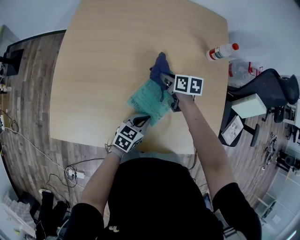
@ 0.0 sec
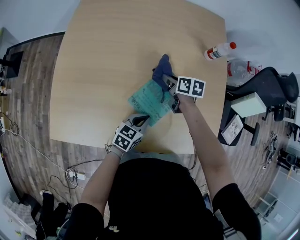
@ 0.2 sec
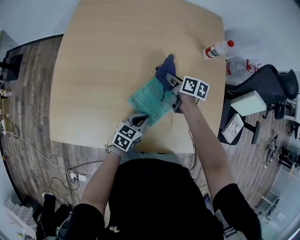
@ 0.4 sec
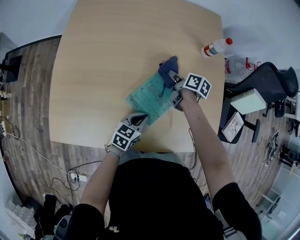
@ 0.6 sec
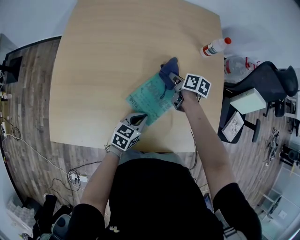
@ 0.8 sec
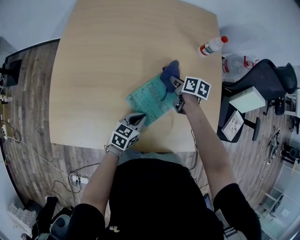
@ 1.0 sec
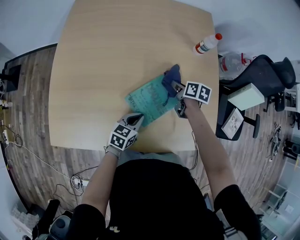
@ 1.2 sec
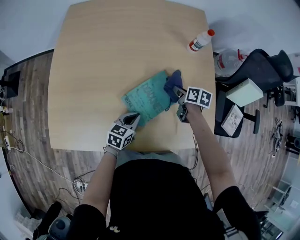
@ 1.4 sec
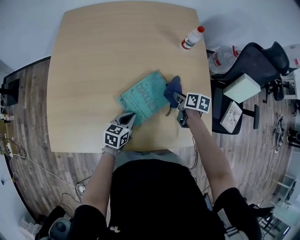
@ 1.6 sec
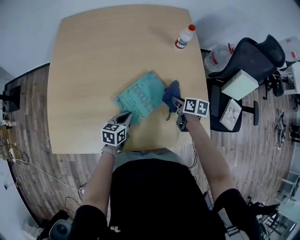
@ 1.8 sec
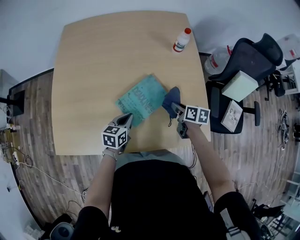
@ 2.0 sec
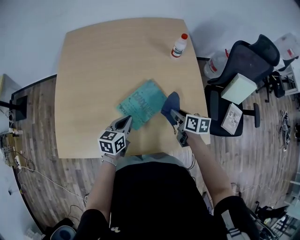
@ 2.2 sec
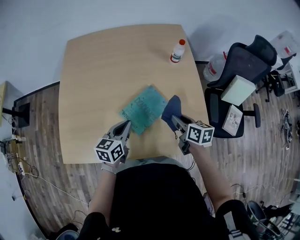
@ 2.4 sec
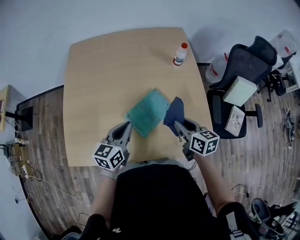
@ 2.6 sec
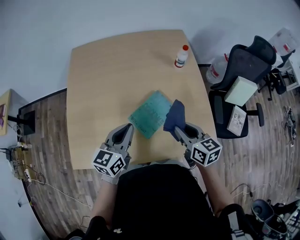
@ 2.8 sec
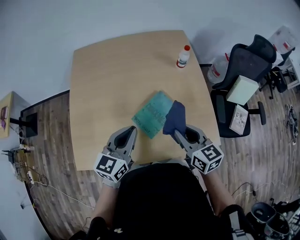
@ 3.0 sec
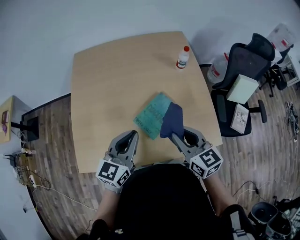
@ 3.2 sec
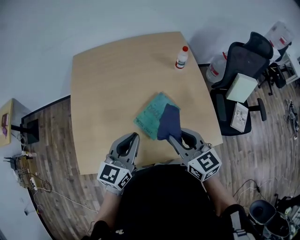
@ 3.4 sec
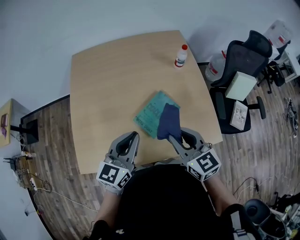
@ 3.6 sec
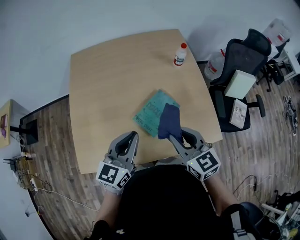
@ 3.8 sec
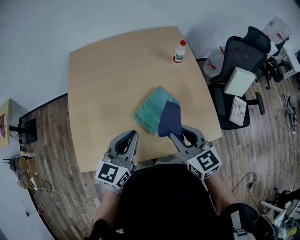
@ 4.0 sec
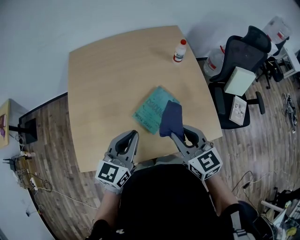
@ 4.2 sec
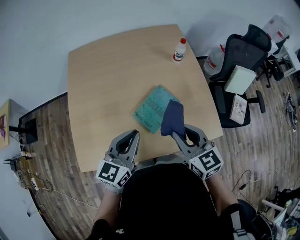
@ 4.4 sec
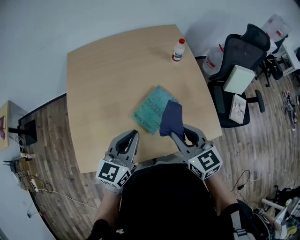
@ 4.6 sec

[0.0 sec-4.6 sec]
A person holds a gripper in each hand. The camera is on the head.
0.0 sec to 1.6 sec: The right gripper goes about 20 cm to the right, and changes its angle by approximately 20 degrees.
1.6 sec to 3.0 sec: The left gripper travels upward by approximately 30 cm, and changes its angle by some 30 degrees. The right gripper moves upward and backward, some 30 cm, and points its fingers about 30 degrees further upward.
3.0 sec to 4.6 sec: The right gripper changes place by roughly 5 cm.

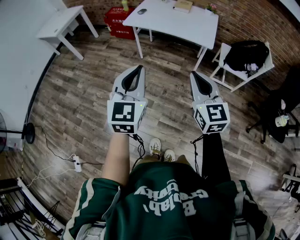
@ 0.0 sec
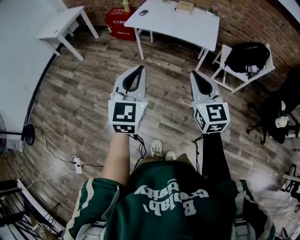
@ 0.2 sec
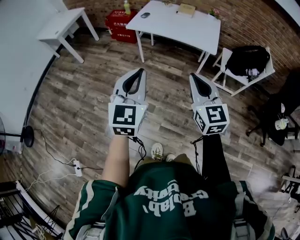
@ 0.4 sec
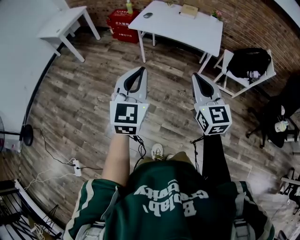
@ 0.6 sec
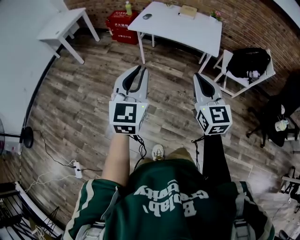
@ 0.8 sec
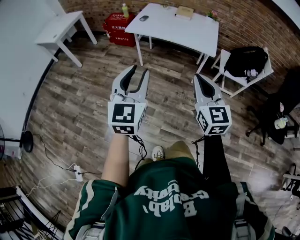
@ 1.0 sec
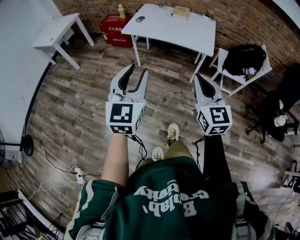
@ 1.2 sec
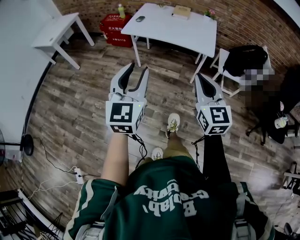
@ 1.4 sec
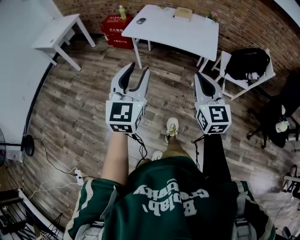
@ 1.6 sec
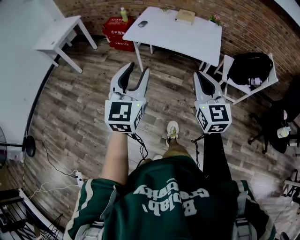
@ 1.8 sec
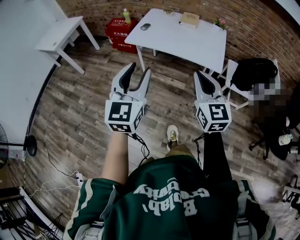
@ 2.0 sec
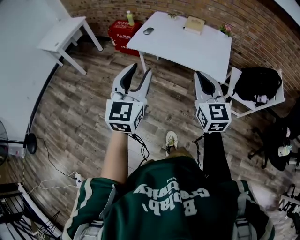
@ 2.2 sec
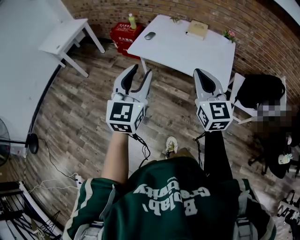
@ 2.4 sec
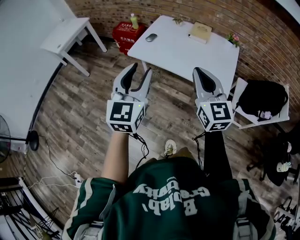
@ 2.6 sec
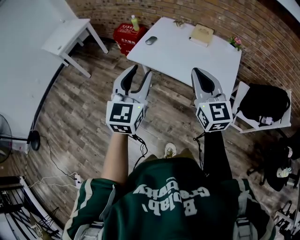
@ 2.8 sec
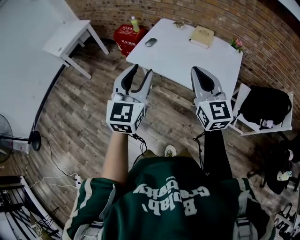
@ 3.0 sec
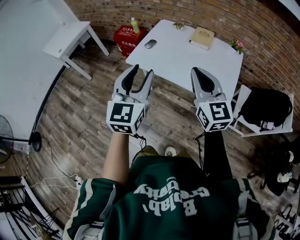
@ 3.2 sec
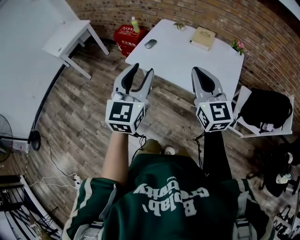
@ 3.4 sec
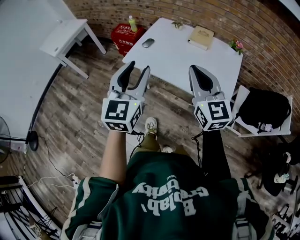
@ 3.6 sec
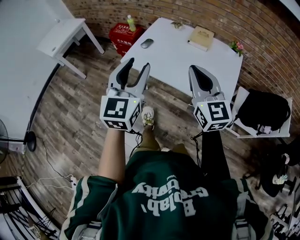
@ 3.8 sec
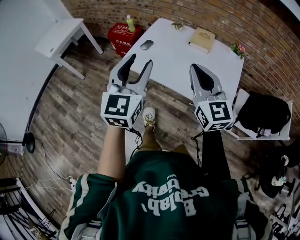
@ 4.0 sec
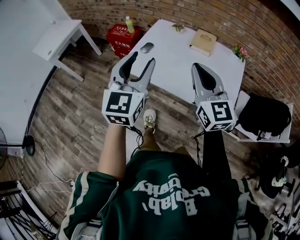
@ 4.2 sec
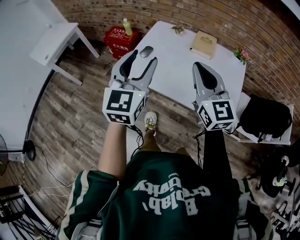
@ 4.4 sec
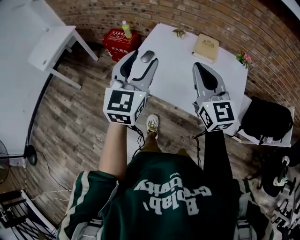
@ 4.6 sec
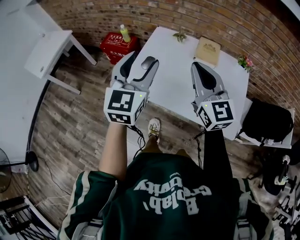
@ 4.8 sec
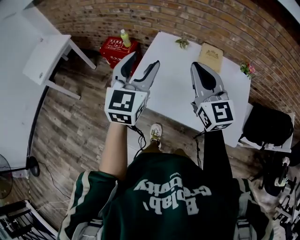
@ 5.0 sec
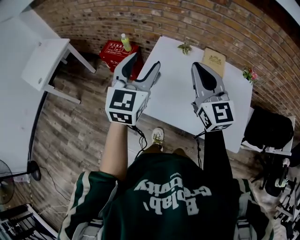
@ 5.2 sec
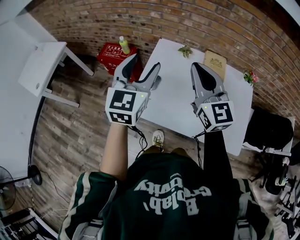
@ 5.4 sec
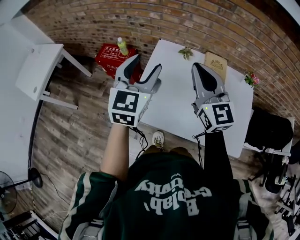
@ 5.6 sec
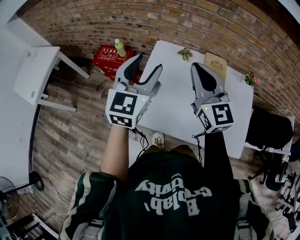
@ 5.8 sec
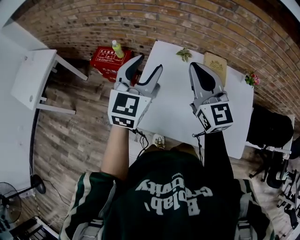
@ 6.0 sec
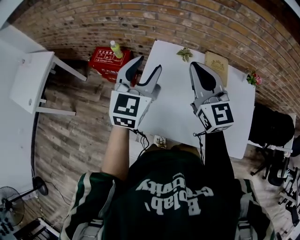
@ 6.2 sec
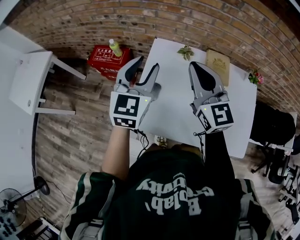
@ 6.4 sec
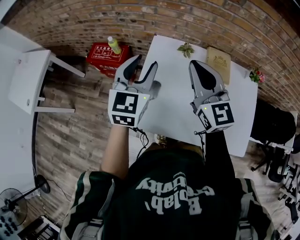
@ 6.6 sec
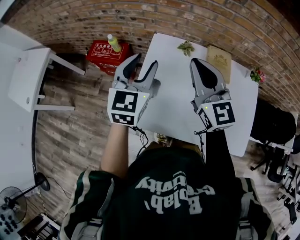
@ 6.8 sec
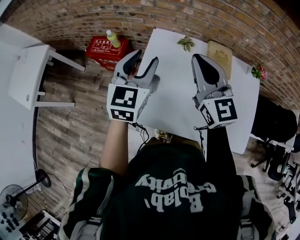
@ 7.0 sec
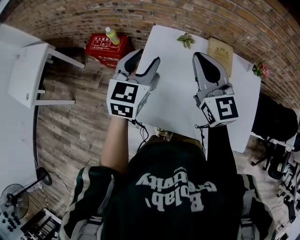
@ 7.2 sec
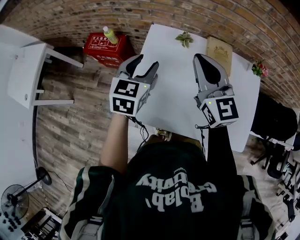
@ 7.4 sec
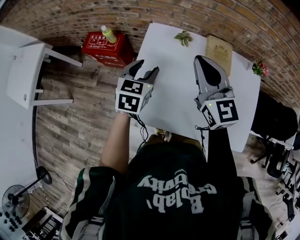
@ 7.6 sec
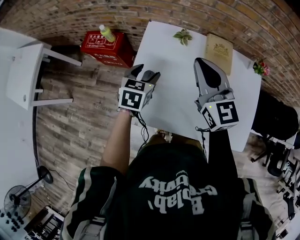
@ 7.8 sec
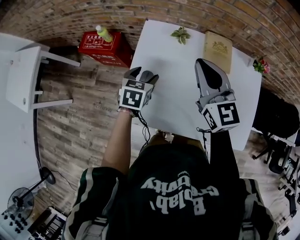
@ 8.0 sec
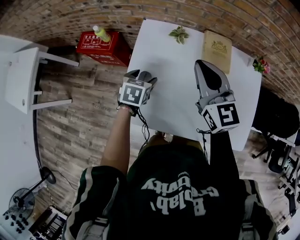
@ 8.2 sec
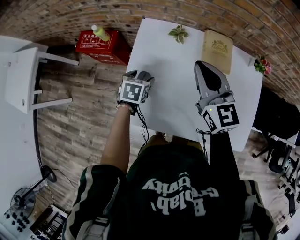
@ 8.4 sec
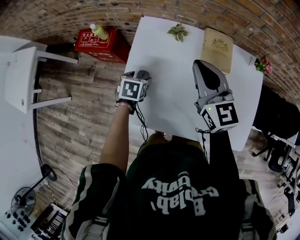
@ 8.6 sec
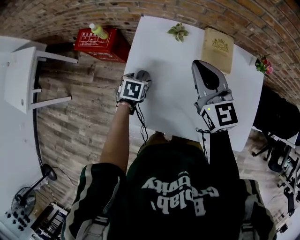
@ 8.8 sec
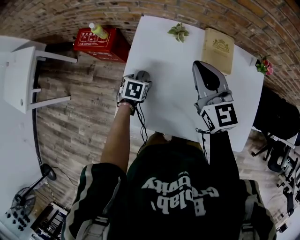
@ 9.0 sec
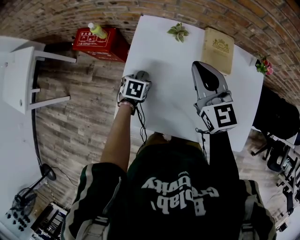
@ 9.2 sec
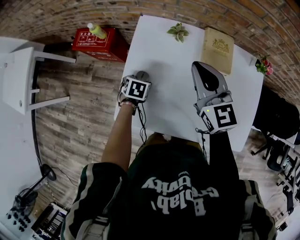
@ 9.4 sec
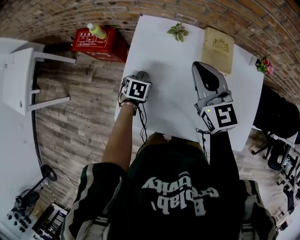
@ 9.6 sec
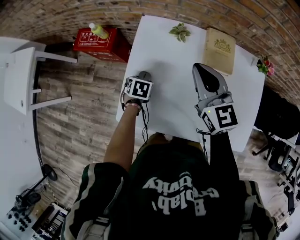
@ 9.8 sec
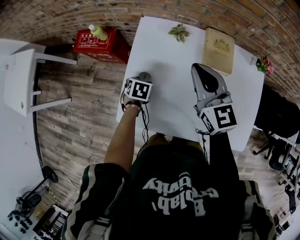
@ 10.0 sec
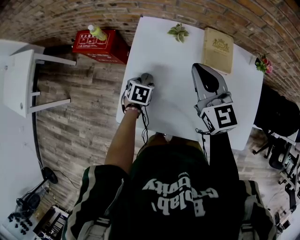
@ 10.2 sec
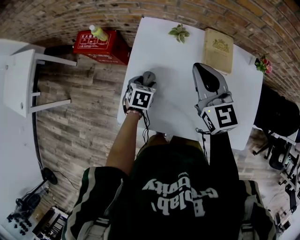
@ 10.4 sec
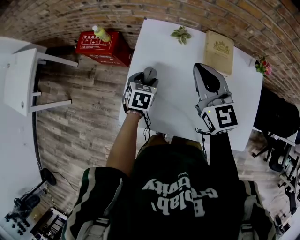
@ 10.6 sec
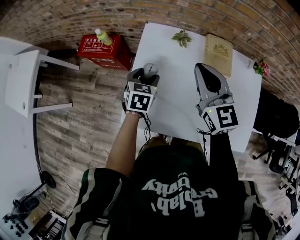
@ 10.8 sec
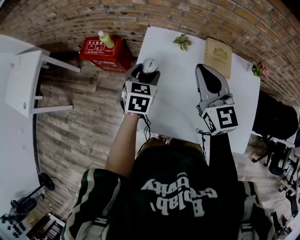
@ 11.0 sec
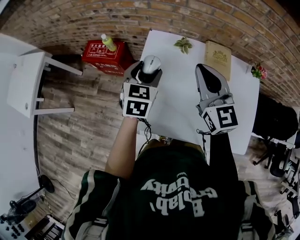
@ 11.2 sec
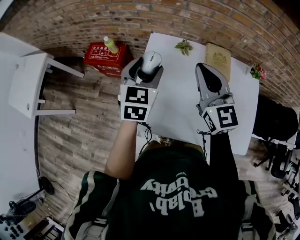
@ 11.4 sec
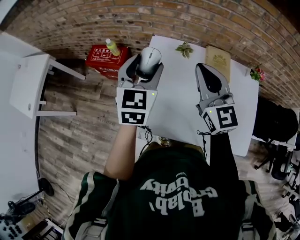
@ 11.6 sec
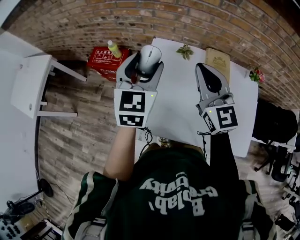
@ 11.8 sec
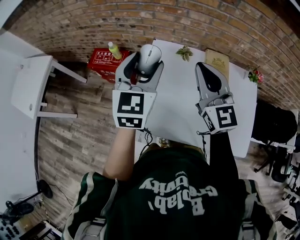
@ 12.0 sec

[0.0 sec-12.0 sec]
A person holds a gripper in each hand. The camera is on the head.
0.0 sec to 1.6 sec: Both grippers travel together forward, about 10 cm. The left gripper opens up.
1.6 sec to 3.0 sec: The grippers both shift forward by about 35 cm.
3.0 sec to 4.4 sec: The two grippers go some 15 cm forward.
4.4 sec to 6.0 sec: The left gripper goes about 30 cm forward; the right gripper is displaced forward and to the left by approximately 30 cm.
6.0 sec to 7.6 sec: The left gripper moves downward, about 20 cm, and turns by some 30 degrees, while the right gripper goes some 5 cm downward.
7.6 sec to 9.0 sec: The left gripper shifts roughly 20 cm downward, tips its fingers downward by some 30 degrees, and opens up, while the right gripper travels downward by approximately 5 cm.
9.0 sec to 10.4 sec: There are only small adjustments of the grippers.
10.4 sec to 12.0 sec: The left gripper shifts some 35 cm upward, and tips its fingers upward by approximately 50 degrees. Meanwhile the right gripper moves upward, approximately 10 cm.

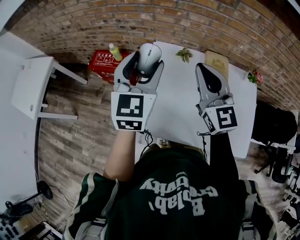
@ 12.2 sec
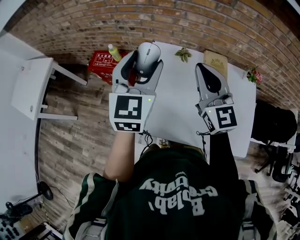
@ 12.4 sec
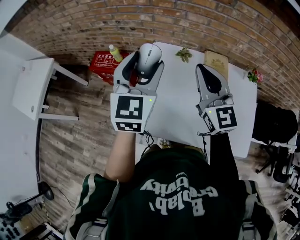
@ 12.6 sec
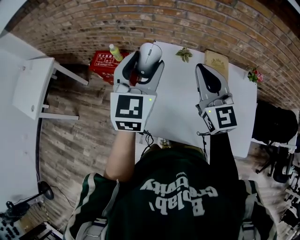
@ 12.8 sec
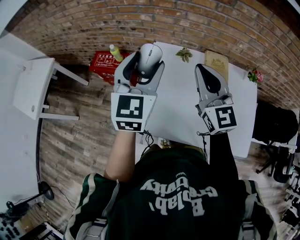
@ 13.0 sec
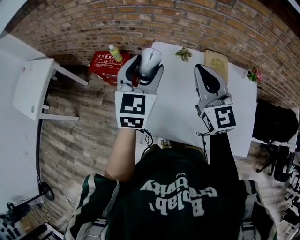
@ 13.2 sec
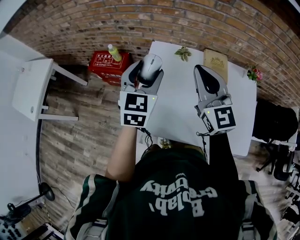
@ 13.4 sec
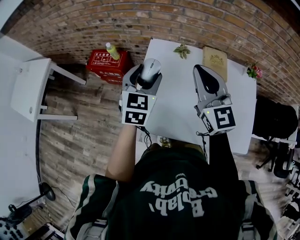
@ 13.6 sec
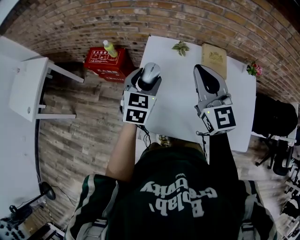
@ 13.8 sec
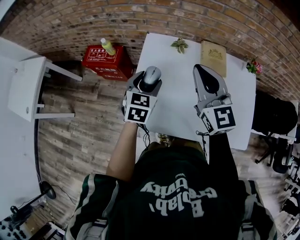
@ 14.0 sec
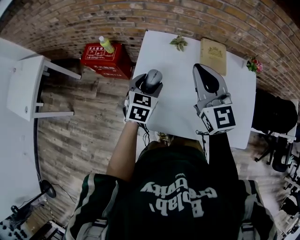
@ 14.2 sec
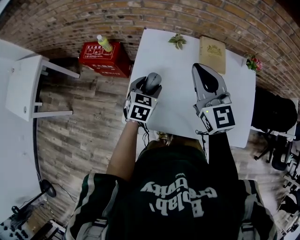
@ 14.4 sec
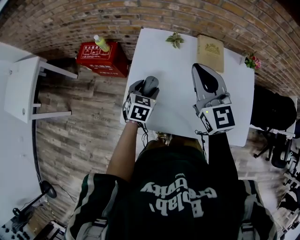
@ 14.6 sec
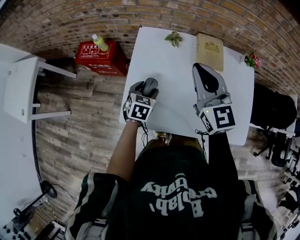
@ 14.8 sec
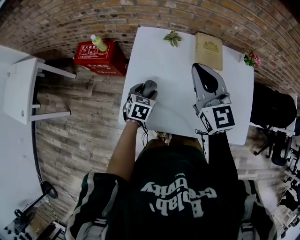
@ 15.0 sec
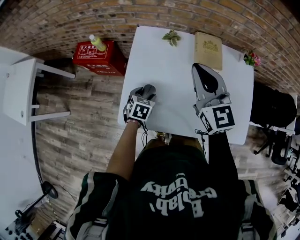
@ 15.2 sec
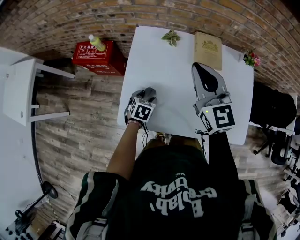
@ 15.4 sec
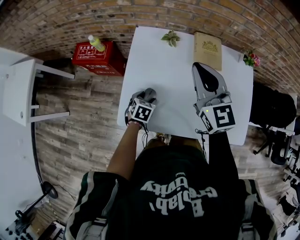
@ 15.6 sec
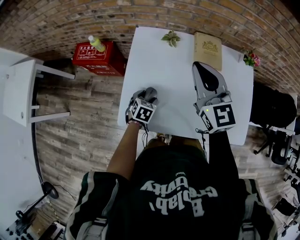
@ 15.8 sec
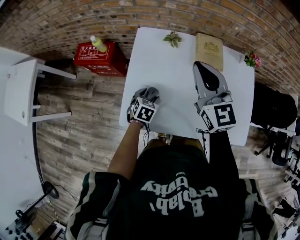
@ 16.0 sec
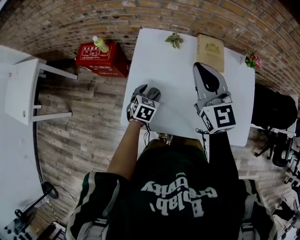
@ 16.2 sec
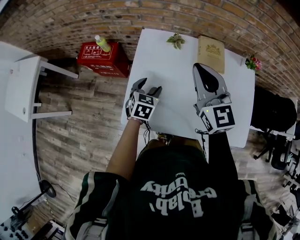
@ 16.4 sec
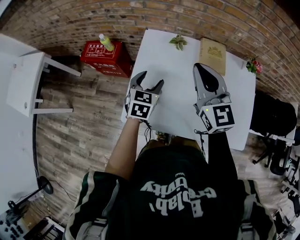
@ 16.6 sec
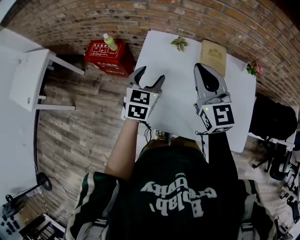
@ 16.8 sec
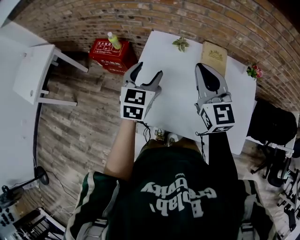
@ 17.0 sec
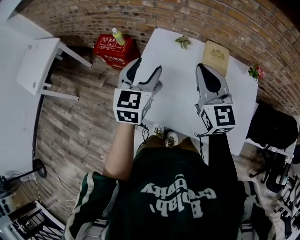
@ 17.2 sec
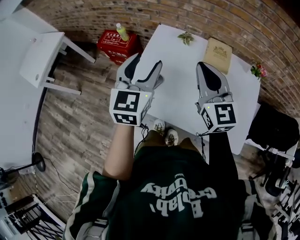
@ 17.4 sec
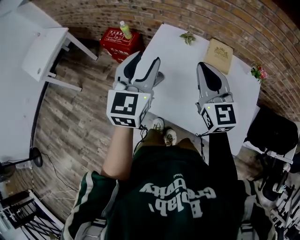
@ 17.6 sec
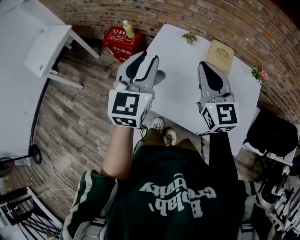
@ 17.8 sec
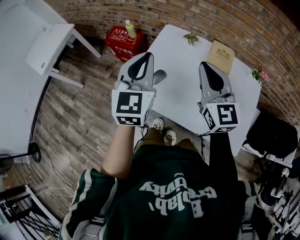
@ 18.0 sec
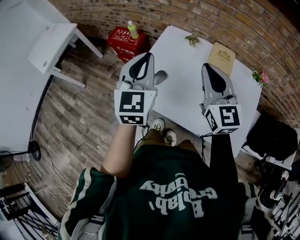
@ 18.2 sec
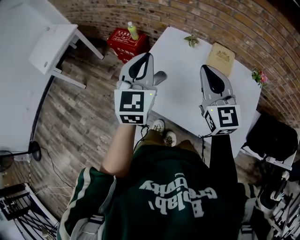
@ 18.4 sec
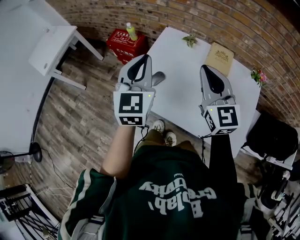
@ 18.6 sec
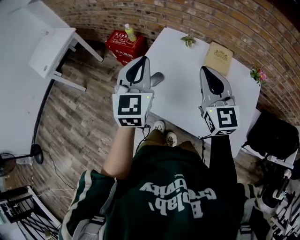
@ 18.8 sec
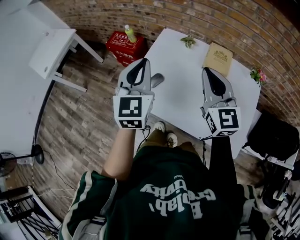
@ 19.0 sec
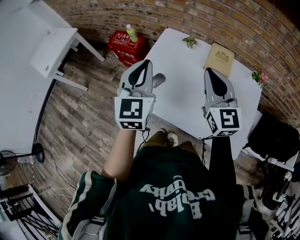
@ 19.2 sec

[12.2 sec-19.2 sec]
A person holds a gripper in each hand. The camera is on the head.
12.2 sec to 13.6 sec: The left gripper heads downward, covering about 10 cm.
13.6 sec to 15.0 sec: The right gripper shifts some 5 cm downward; the left gripper shifts roughly 25 cm downward, and changes its angle by approximately 30 degrees.
16.4 sec to 17.8 sec: The right gripper is displaced backward by approximately 10 cm. Meanwhile the left gripper is displaced upward and backward by roughly 30 cm, points its fingers about 40 degrees further upward, and closes up.
17.8 sec to 19.2 sec: The grippers stay close to where they were, moving slightly.
